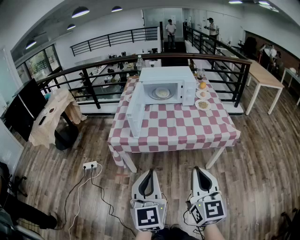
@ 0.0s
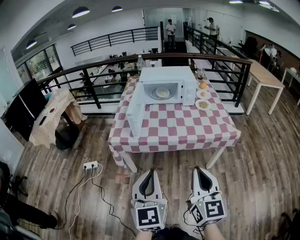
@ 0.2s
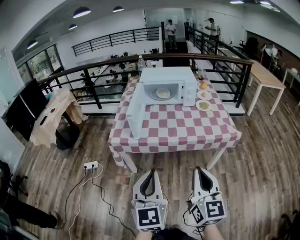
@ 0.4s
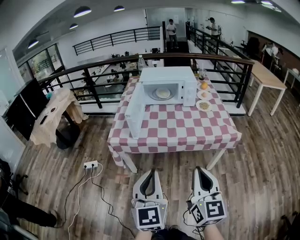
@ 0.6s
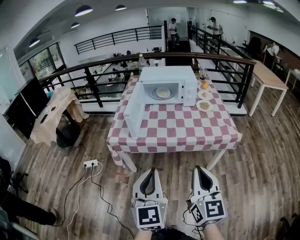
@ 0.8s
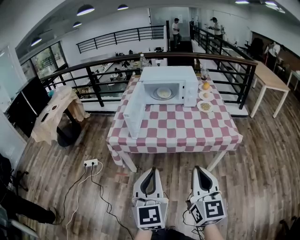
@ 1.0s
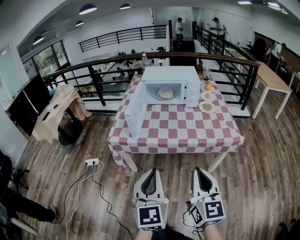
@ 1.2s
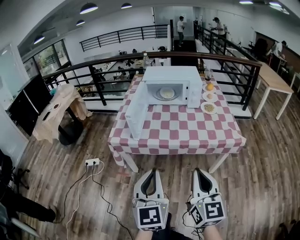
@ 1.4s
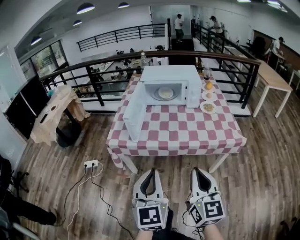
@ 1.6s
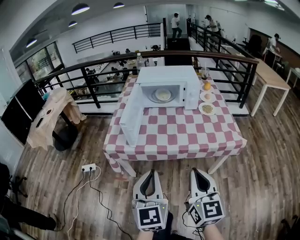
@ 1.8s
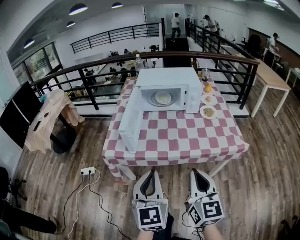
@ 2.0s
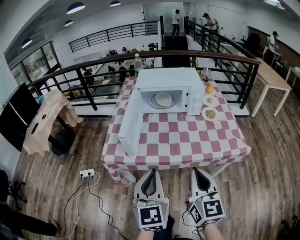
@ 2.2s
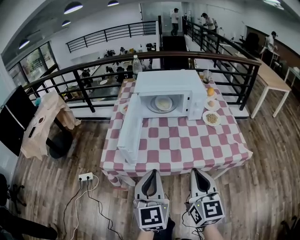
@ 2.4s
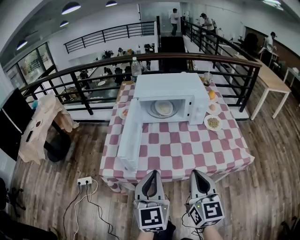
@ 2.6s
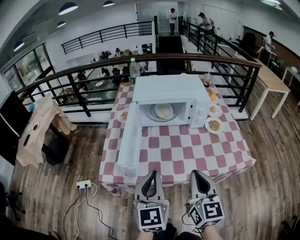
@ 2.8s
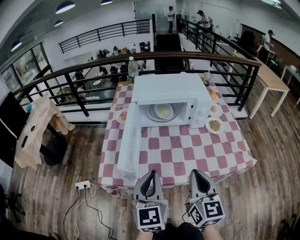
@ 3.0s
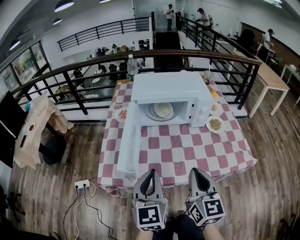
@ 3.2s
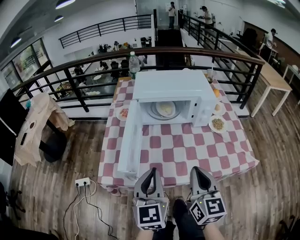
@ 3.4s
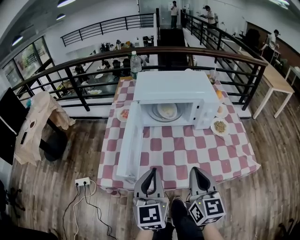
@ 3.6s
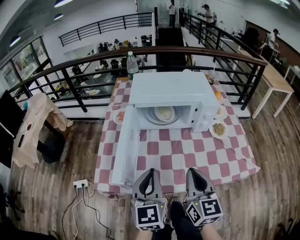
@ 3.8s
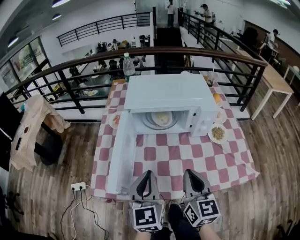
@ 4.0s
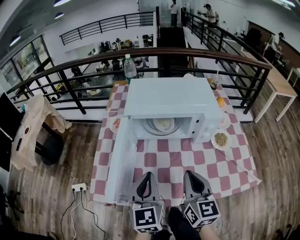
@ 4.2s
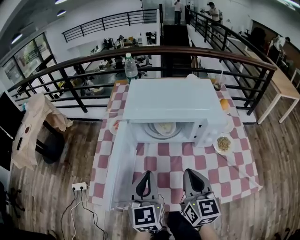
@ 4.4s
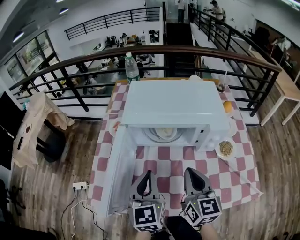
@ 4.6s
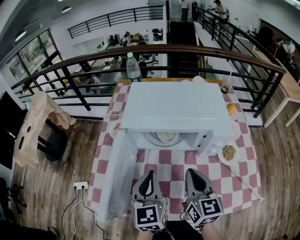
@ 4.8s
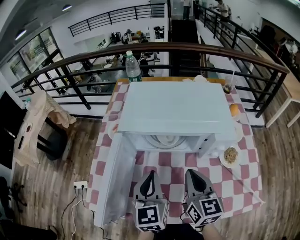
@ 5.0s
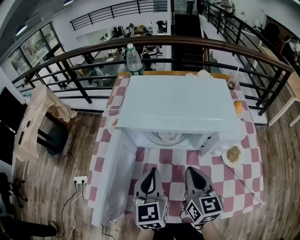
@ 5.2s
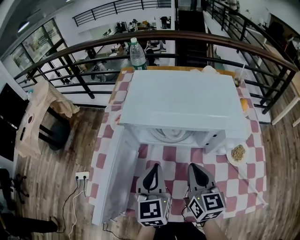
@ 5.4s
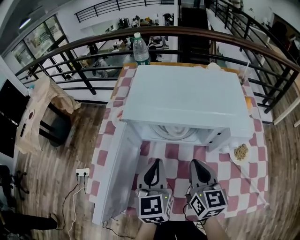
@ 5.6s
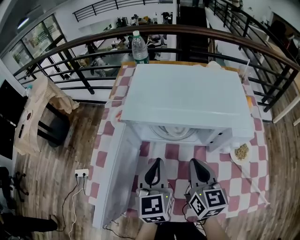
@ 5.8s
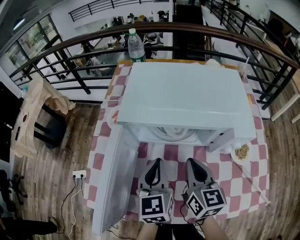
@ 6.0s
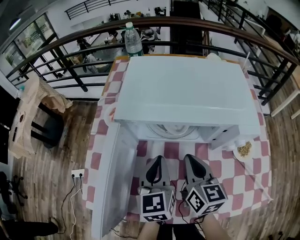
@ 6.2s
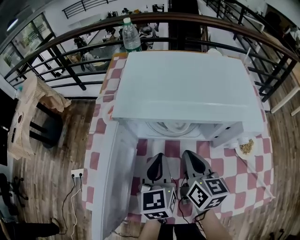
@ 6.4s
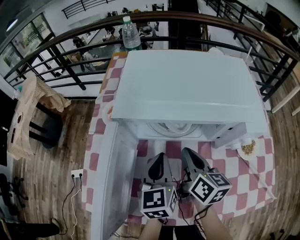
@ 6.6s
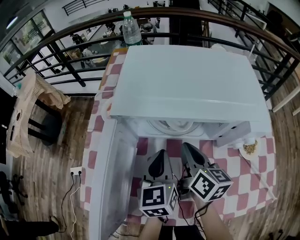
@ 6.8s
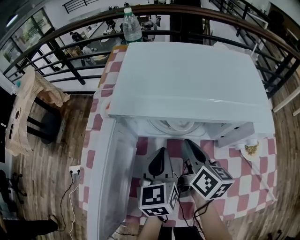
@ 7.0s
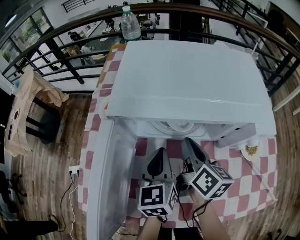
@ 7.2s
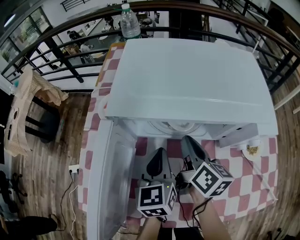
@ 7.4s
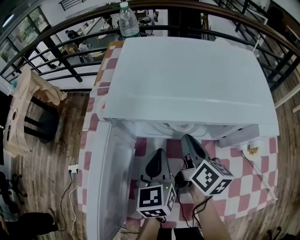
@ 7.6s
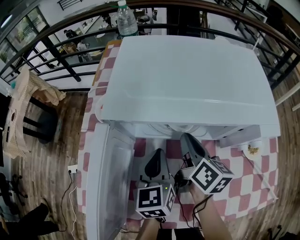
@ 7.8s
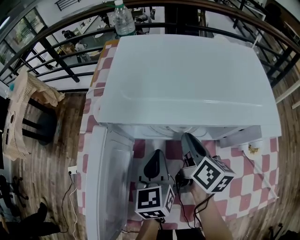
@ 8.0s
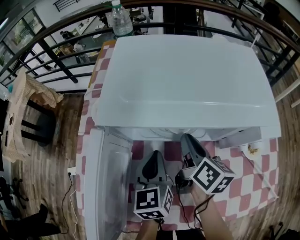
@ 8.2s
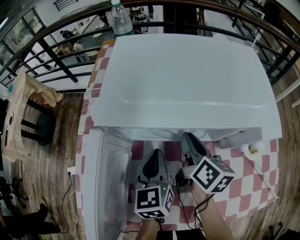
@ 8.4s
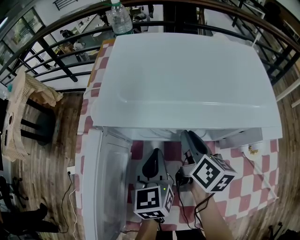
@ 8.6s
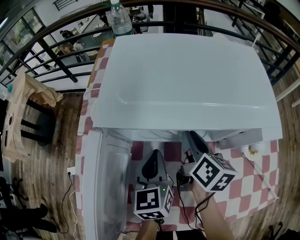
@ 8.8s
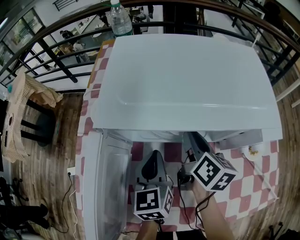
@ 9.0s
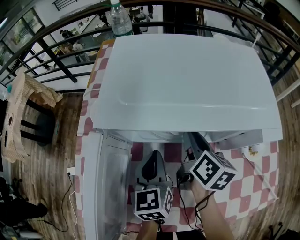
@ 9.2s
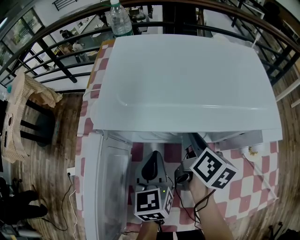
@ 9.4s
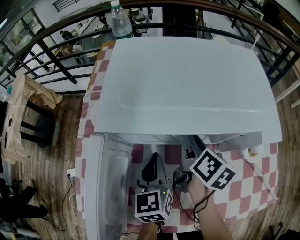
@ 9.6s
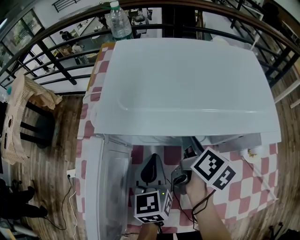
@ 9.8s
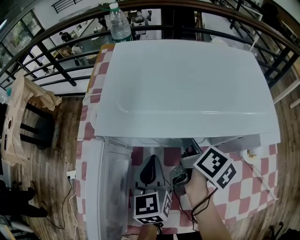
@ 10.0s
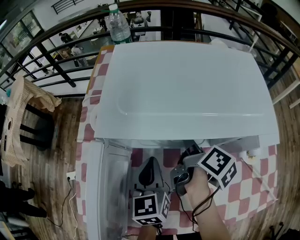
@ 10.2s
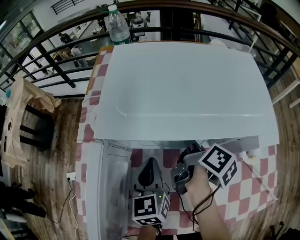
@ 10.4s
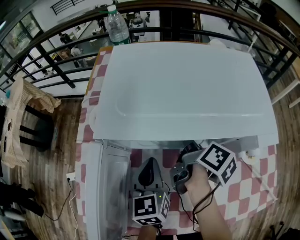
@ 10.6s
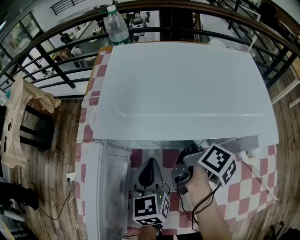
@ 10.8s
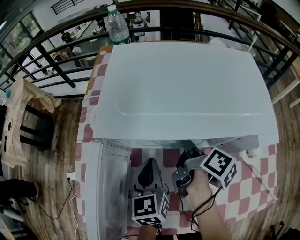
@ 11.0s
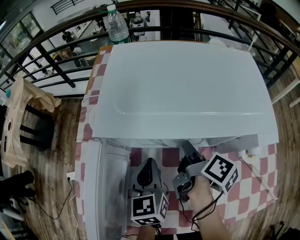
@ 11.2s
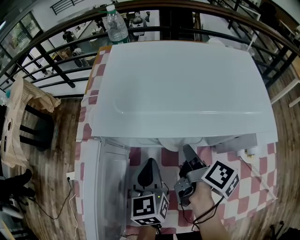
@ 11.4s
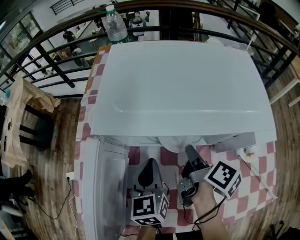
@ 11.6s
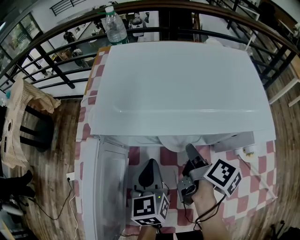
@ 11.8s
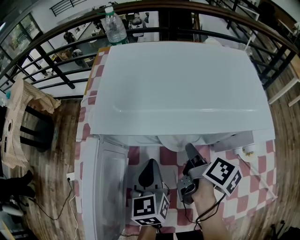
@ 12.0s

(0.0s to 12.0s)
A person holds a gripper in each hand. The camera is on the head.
0.0s - 1.6s: The two grippers go roughly 5 cm forward.
1.6s - 3.0s: The two grippers go some 25 cm forward.
3.0s - 4.4s: Both grippers travel together forward, roughly 20 cm.
4.4s - 6.0s: Both grippers travel together forward and downward, roughly 15 cm.
6.0s - 7.6s: The left gripper is displaced downward by approximately 10 cm, while the right gripper is displaced forward and downward by approximately 10 cm, and swivels roughly 30 degrees.
7.6s - 9.0s: The grippers make only small movements.
9.0s - 10.4s: The right gripper swivels approximately 40 degrees.
10.4s - 12.0s: The grippers move only a little.

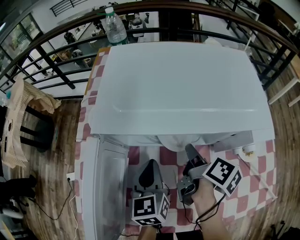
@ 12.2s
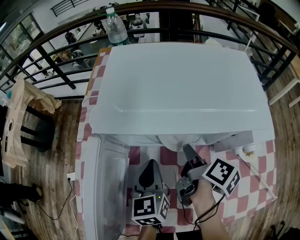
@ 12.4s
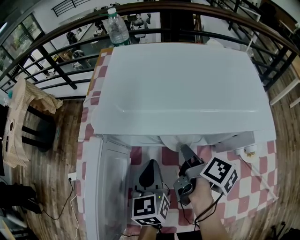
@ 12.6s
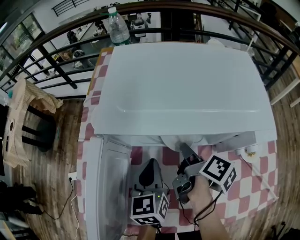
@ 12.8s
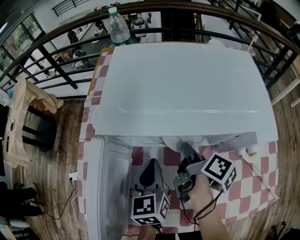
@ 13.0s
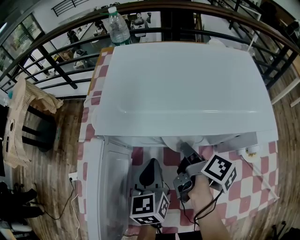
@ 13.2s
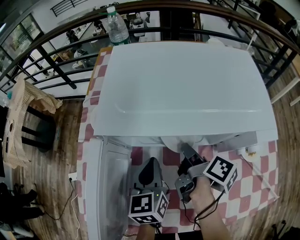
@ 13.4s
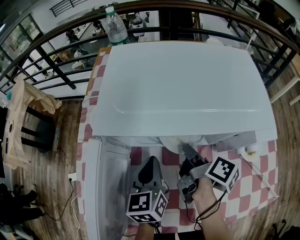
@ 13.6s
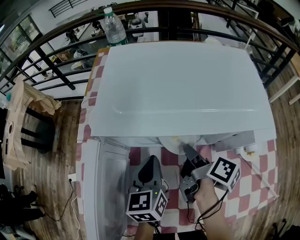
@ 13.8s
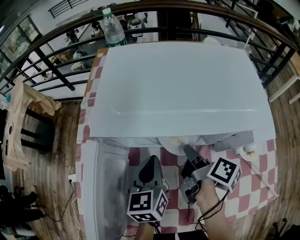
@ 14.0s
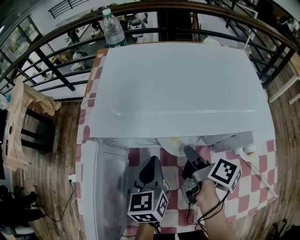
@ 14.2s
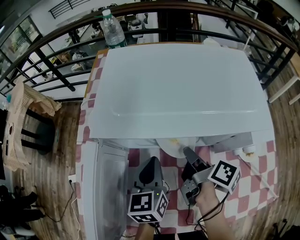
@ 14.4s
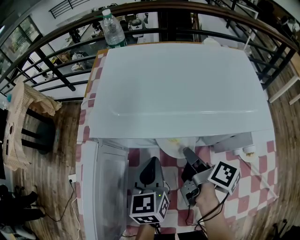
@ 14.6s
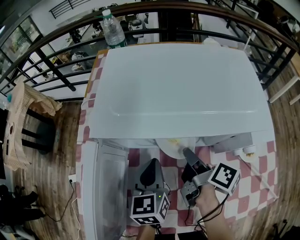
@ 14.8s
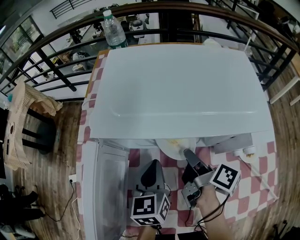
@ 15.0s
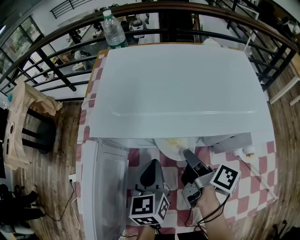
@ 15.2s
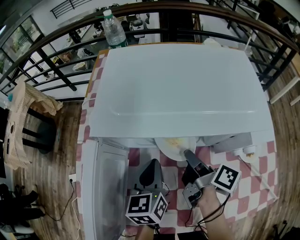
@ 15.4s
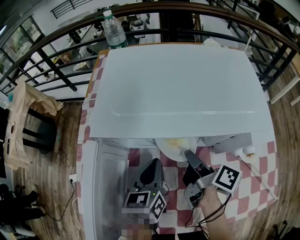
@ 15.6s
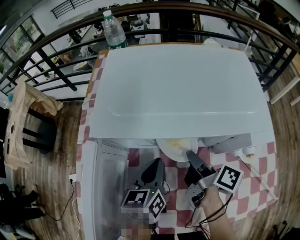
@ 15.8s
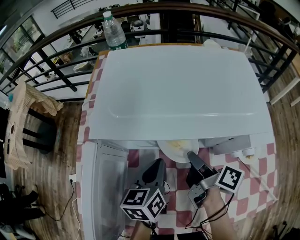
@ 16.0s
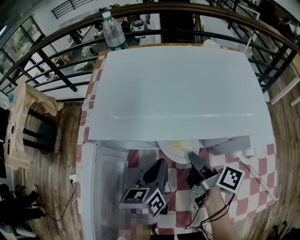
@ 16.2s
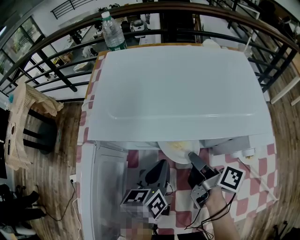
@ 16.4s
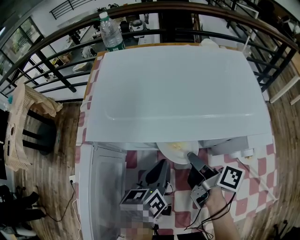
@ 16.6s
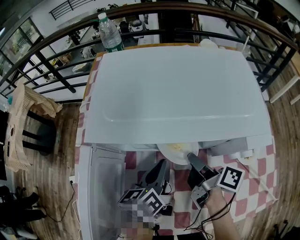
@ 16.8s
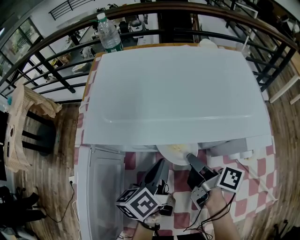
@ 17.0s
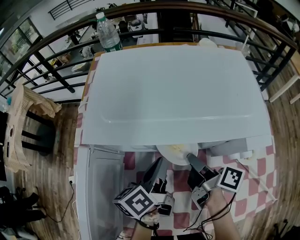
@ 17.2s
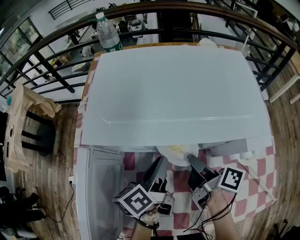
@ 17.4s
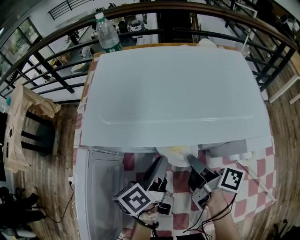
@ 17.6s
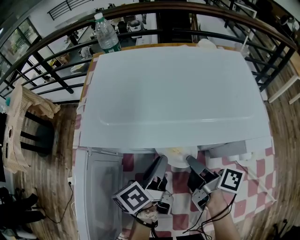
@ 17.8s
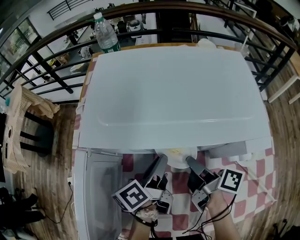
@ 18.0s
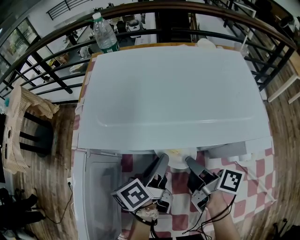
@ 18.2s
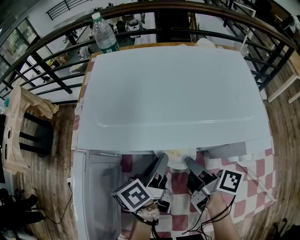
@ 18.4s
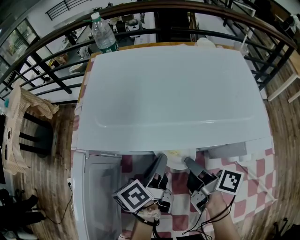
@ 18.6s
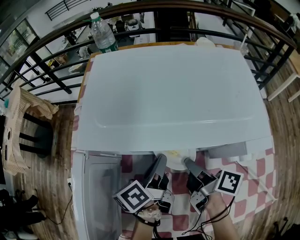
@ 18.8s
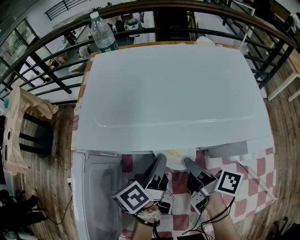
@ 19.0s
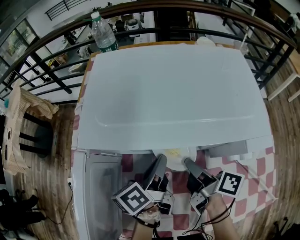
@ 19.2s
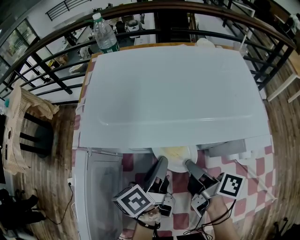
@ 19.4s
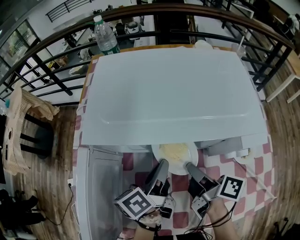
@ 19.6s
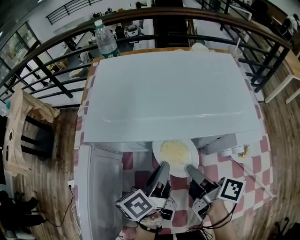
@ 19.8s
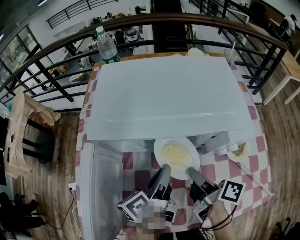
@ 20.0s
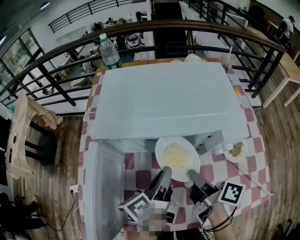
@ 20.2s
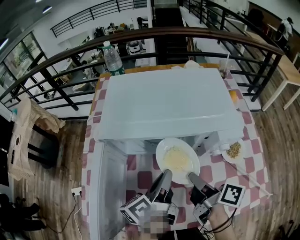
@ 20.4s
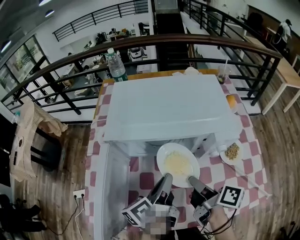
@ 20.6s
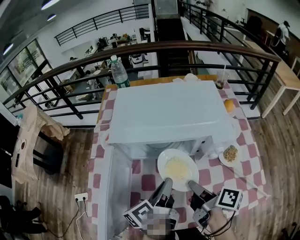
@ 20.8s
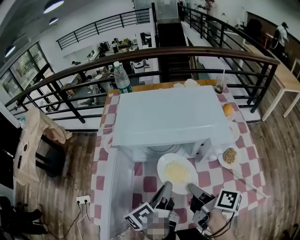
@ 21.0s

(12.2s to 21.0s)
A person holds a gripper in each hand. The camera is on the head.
12.2s - 15.2s: The grippers move only a little.
15.2s - 16.6s: The left gripper turns by roughly 20 degrees.
16.6s - 18.0s: The left gripper turns by some 30 degrees, and opens up.
18.0s - 19.6s: The left gripper closes its fingers.
19.6s - 21.0s: The two grippers go approximately 15 cm backward and upward.

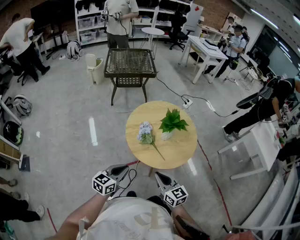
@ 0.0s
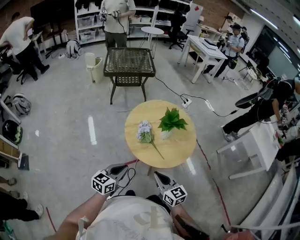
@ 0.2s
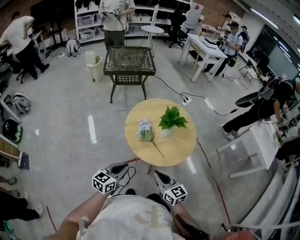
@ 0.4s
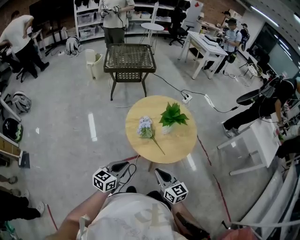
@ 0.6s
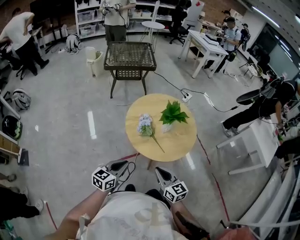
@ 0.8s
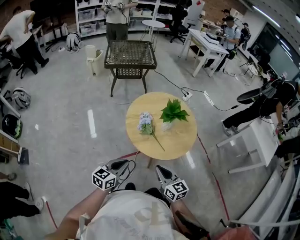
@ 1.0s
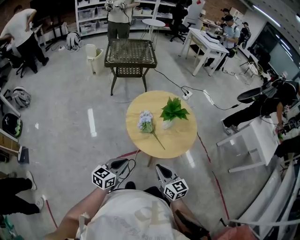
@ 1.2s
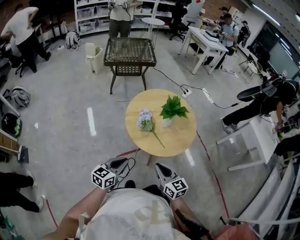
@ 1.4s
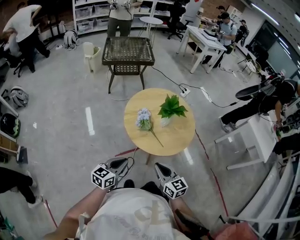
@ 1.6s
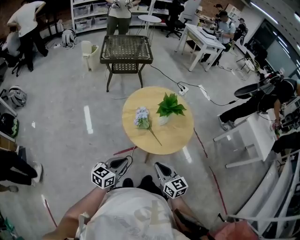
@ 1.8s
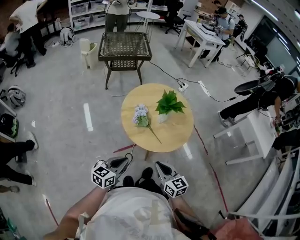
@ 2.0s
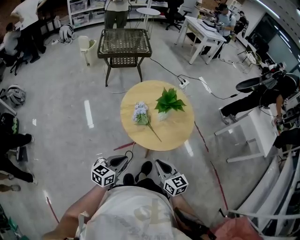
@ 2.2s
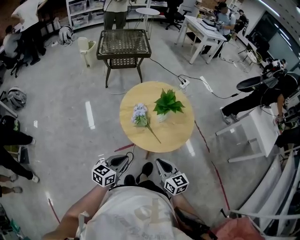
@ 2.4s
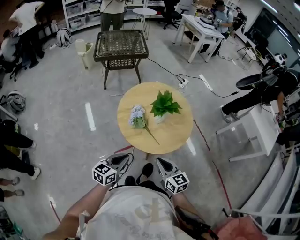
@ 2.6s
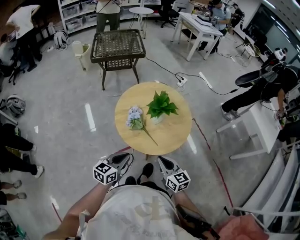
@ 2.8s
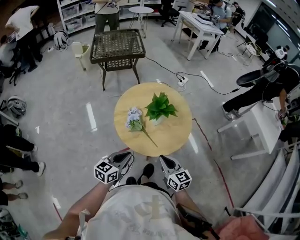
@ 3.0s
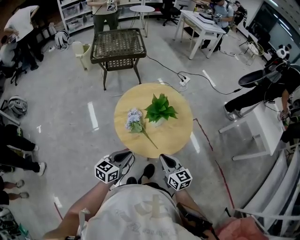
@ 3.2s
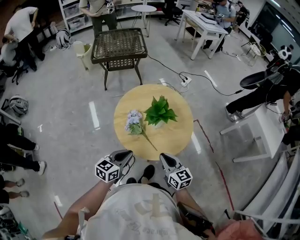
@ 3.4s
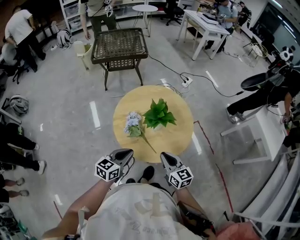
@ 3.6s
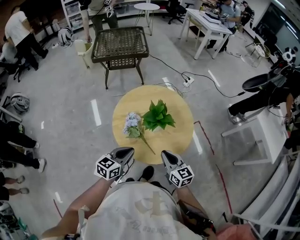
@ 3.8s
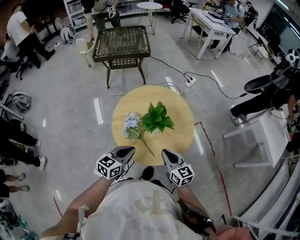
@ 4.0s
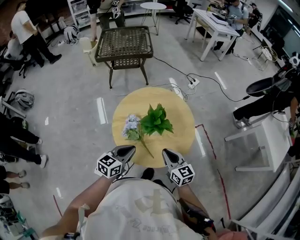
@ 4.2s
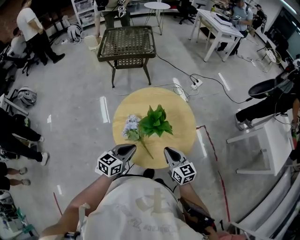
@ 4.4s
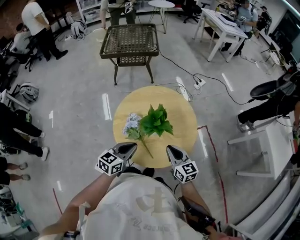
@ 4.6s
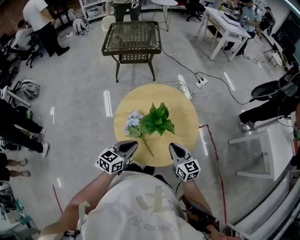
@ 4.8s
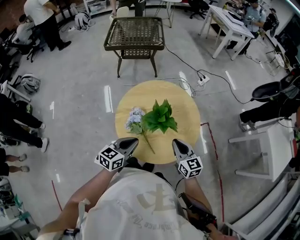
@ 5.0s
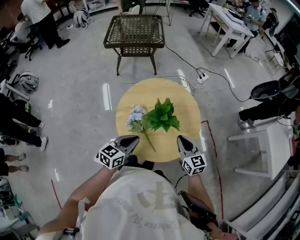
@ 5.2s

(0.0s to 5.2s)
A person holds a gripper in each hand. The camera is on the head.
0.0s - 1.8s: There are only small adjustments of the grippers.
1.8s - 3.4s: Both grippers travel together forward and to the right, roughly 15 cm.
3.4s - 5.2s: The left gripper moves forward, approximately 10 cm. Meanwhile the right gripper goes roughly 15 cm forward and to the right.
